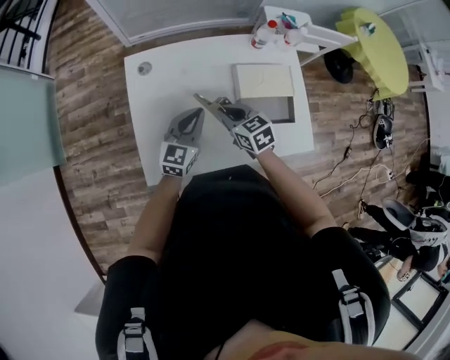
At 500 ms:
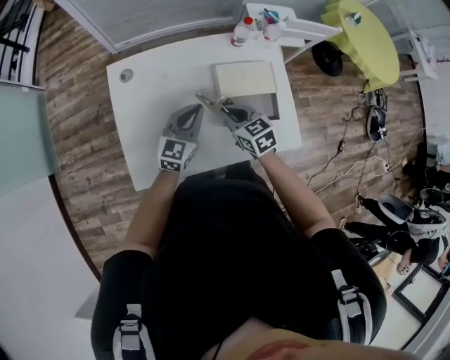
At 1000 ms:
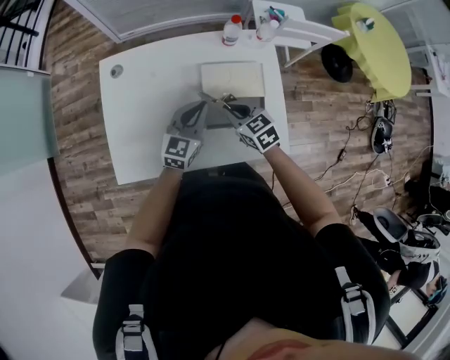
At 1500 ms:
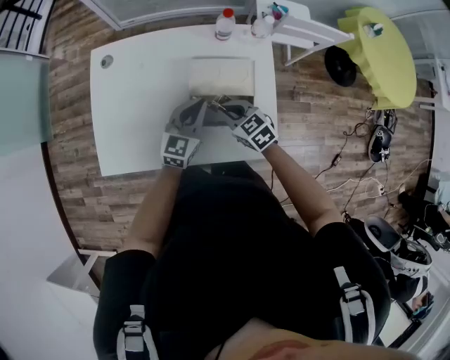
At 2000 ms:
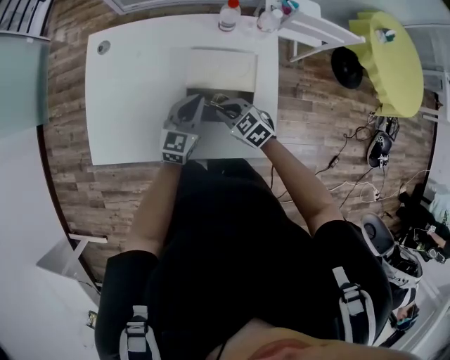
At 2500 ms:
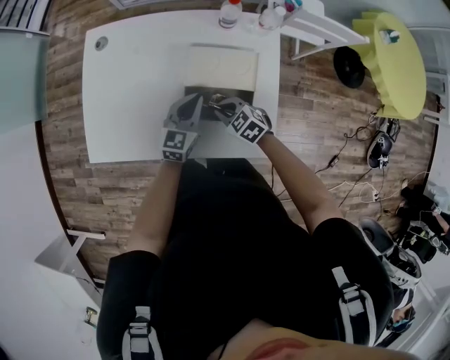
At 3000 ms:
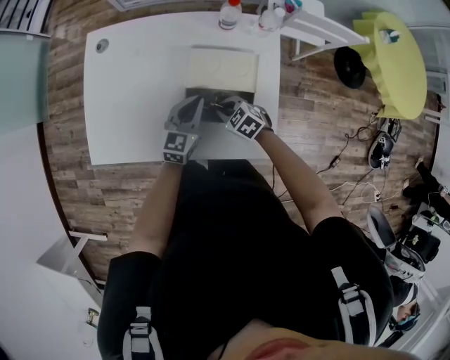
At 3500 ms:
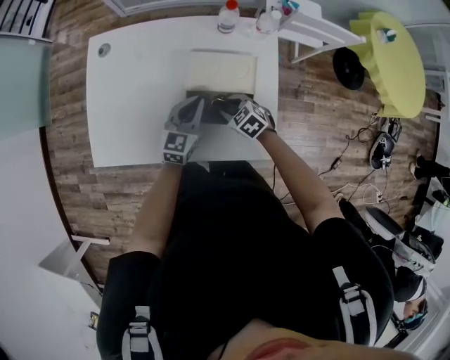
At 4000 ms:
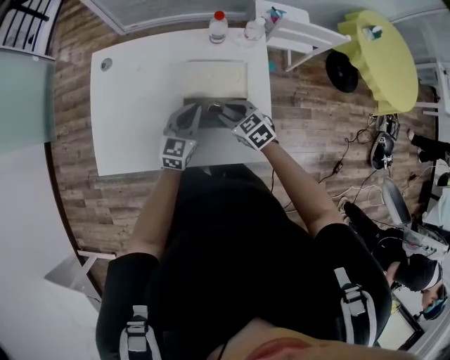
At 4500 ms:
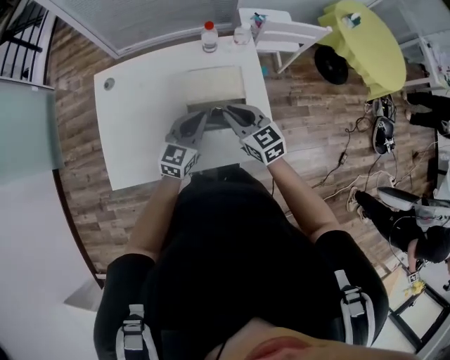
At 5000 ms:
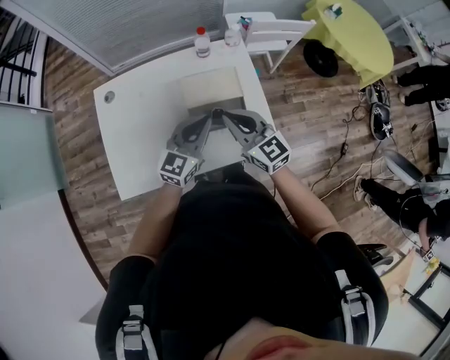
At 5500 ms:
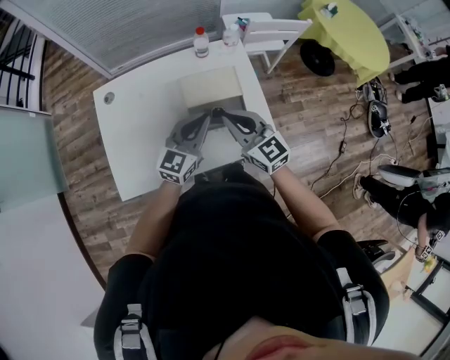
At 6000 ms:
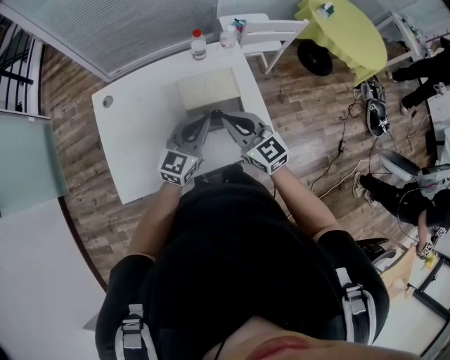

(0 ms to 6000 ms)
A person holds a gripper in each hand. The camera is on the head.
0 ms - 2000 ms: The right gripper moves to the right and downward, some 25 cm, and rotates some 30 degrees. The left gripper shifts approximately 25 cm to the right.
2000 ms - 4000 ms: The right gripper travels downward and back again, about 5 cm each way, and opens up.
4000 ms - 6000 ms: The right gripper goes some 20 cm upward, points its fingers roughly 30 degrees further upward, and closes its fingers, while the left gripper shifts roughly 15 cm upward and backward, and changes its angle by about 30 degrees.

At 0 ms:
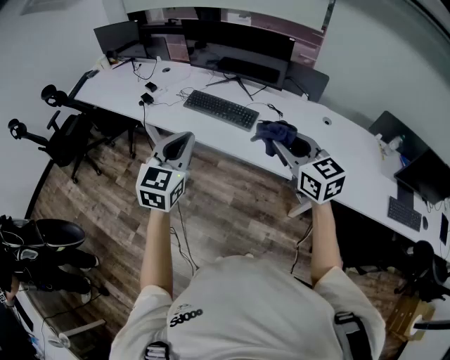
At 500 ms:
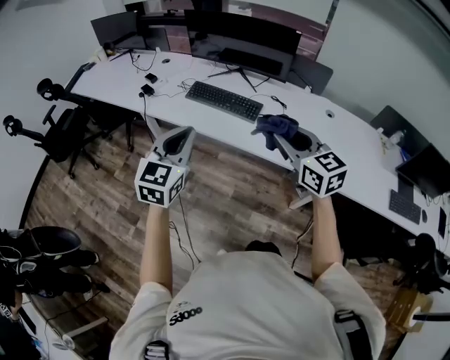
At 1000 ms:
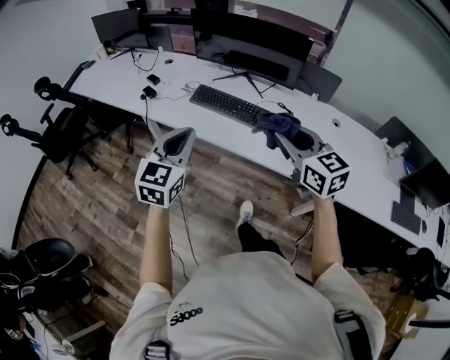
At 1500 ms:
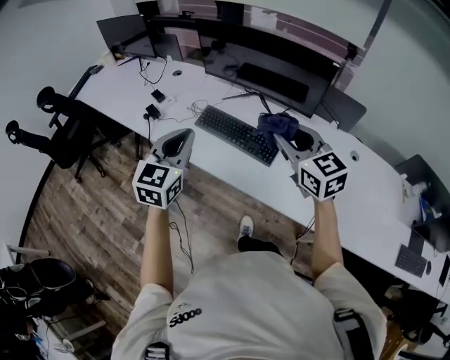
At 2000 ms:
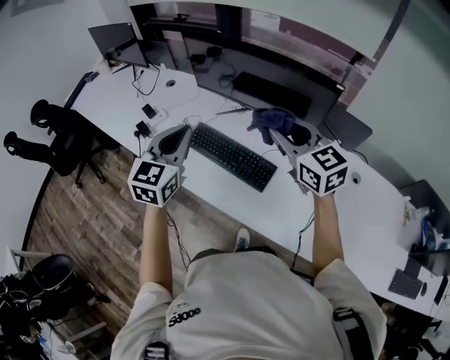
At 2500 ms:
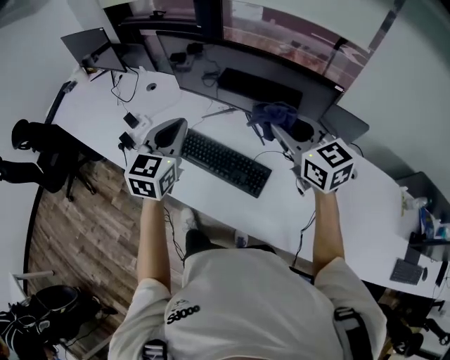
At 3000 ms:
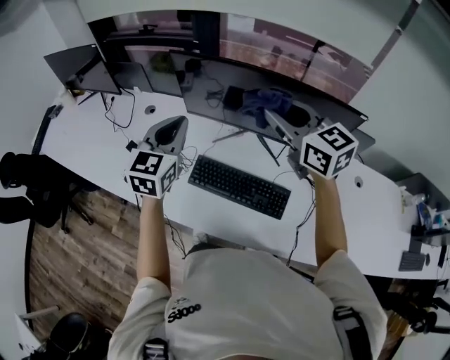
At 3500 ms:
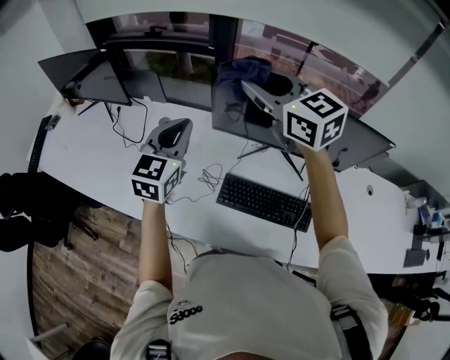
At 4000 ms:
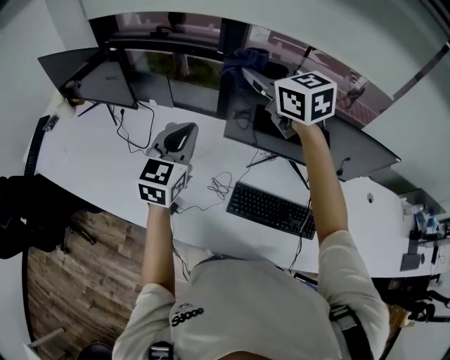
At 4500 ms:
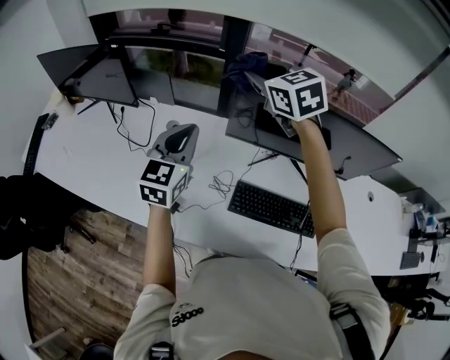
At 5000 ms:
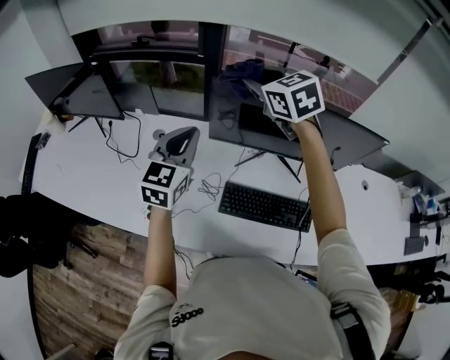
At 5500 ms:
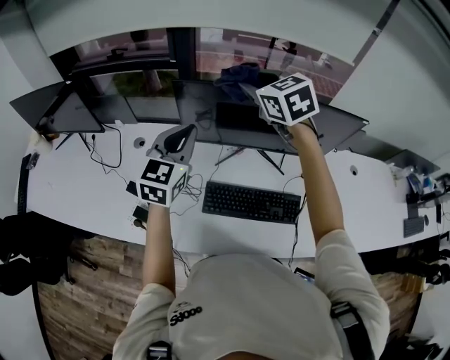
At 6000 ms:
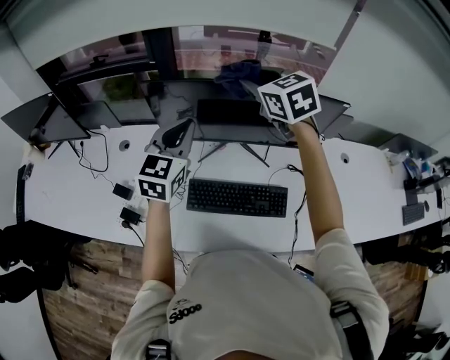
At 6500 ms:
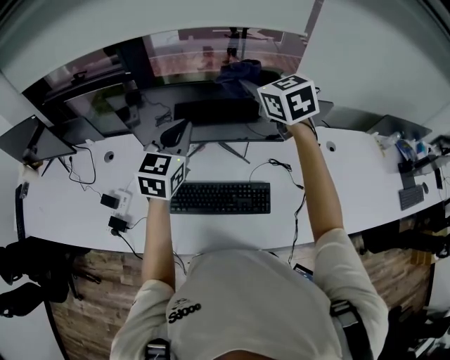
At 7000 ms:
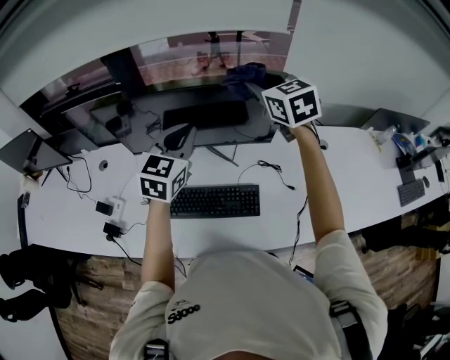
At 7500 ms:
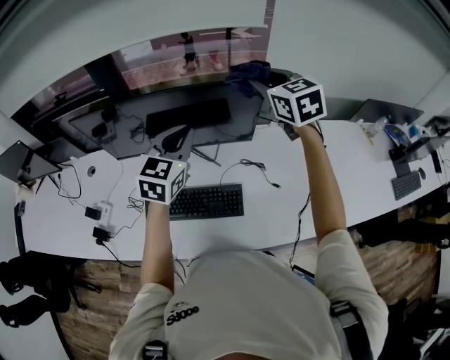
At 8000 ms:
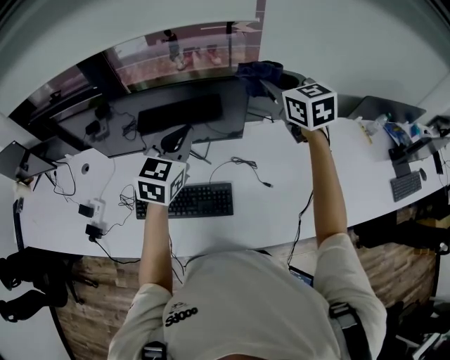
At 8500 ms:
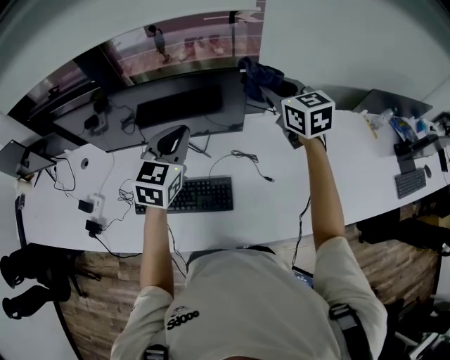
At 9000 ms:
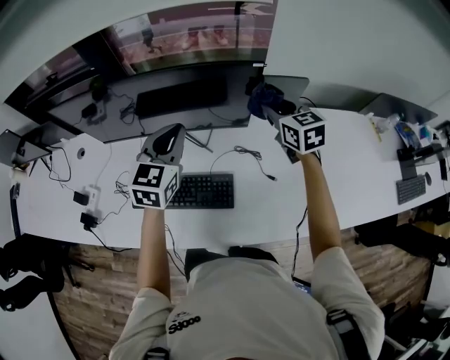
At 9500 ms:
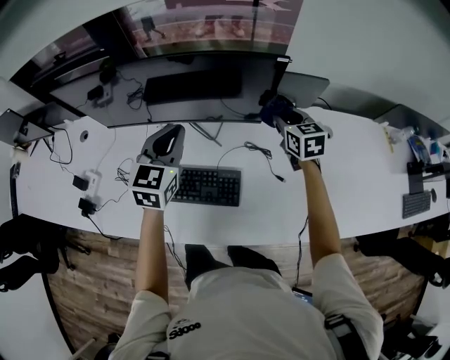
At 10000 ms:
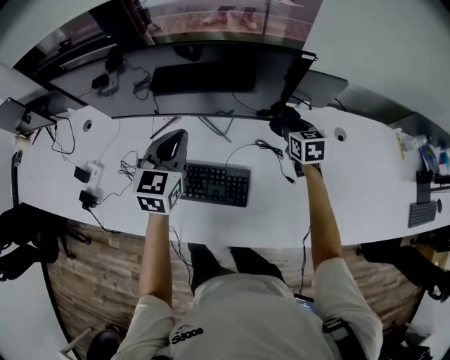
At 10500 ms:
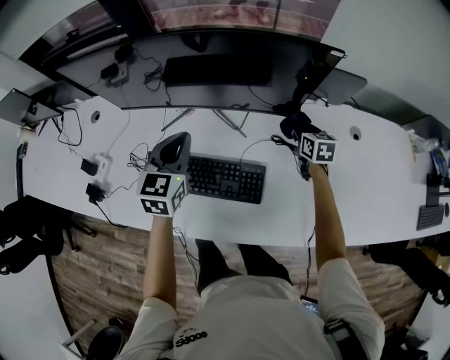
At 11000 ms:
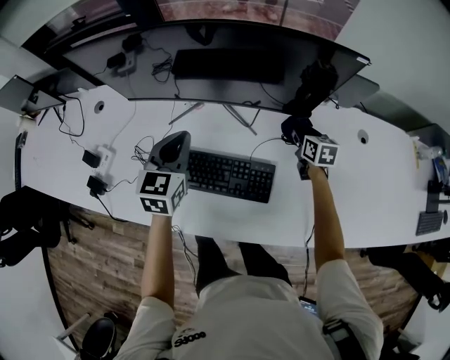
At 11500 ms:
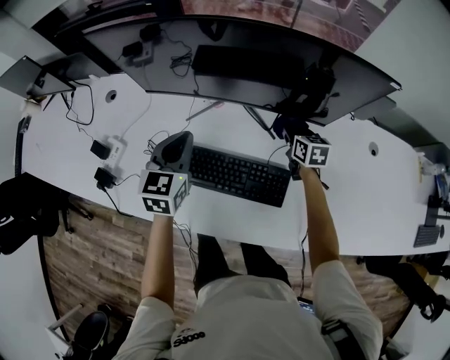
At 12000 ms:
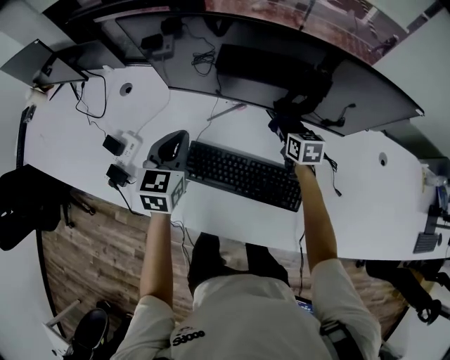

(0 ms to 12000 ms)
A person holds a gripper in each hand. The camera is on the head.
0 ms - 2000 ms: The grippers both shift forward by about 40 cm.
2000 ms - 4000 ms: Both grippers are carried forward and to the left, some 50 cm.
4000 ms - 6000 ms: Both grippers travel together to the right, approximately 25 cm. The right gripper rotates about 20 degrees.
6000 ms - 8000 ms: The two grippers go roughly 35 cm to the right.
8000 ms - 10000 ms: The right gripper moves downward, approximately 35 cm, and rotates some 20 degrees. Meanwhile the left gripper shifts some 15 cm downward and to the left.
10000 ms - 12000 ms: The two grippers go roughly 25 cm to the left.

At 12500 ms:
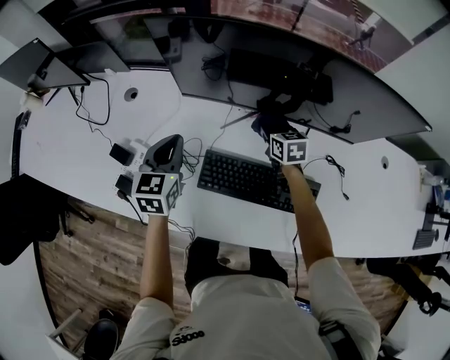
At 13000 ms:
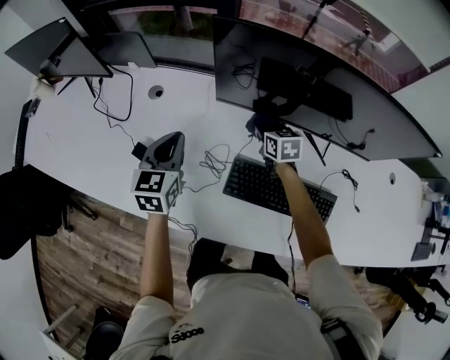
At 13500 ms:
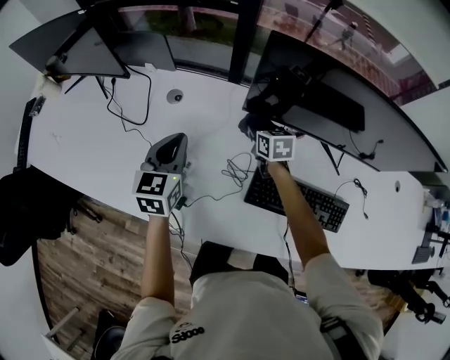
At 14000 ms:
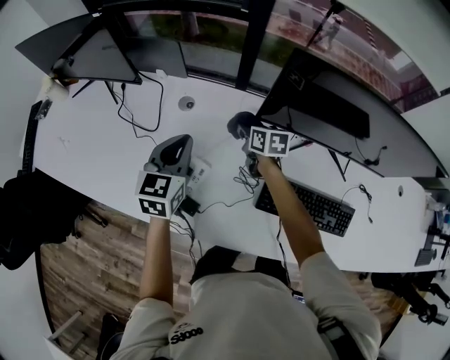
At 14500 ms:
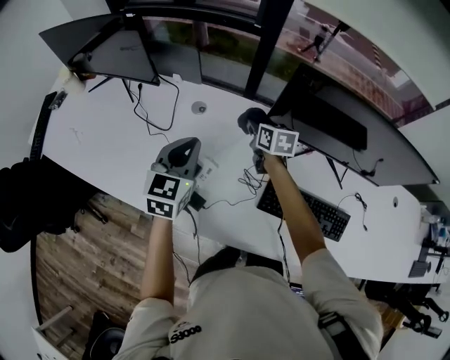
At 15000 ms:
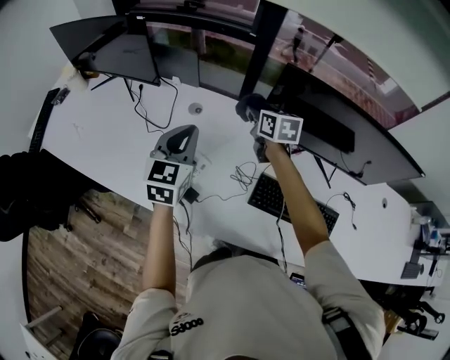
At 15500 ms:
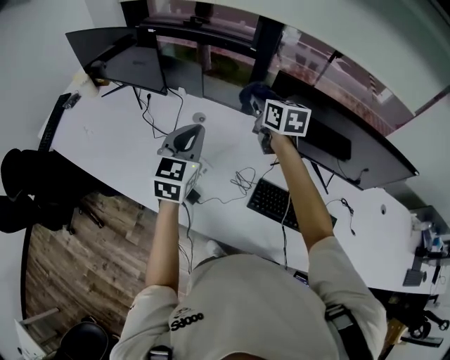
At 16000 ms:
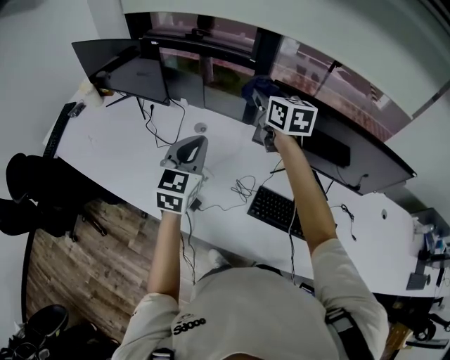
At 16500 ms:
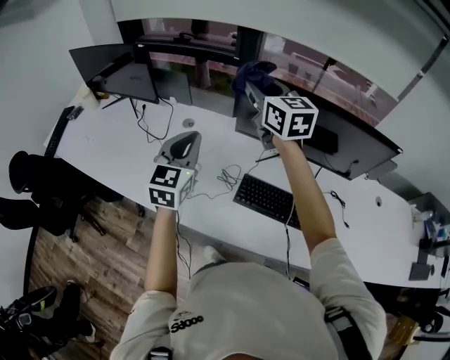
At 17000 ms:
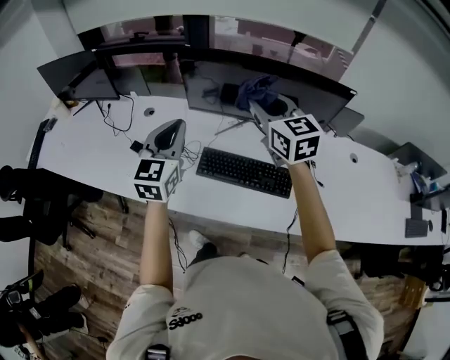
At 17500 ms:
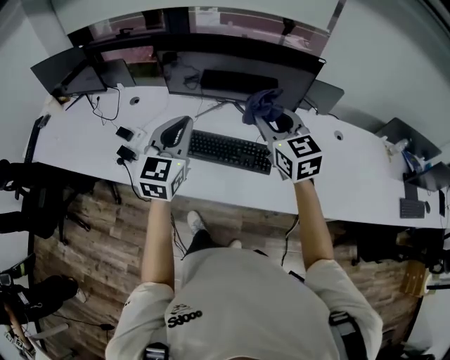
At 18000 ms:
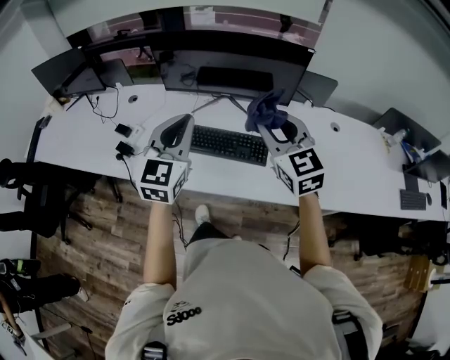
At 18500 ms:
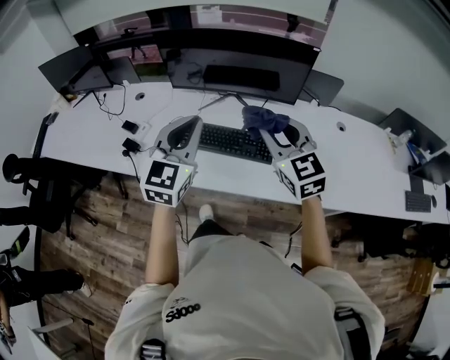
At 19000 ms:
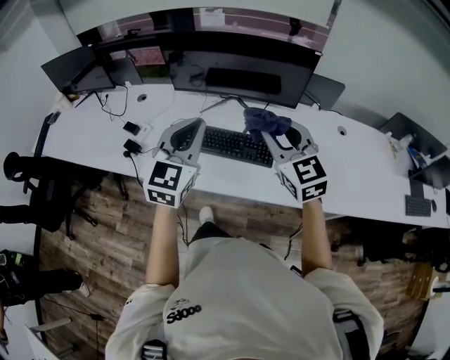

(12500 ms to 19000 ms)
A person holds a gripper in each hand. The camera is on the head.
12500 ms - 14500 ms: The grippers both shift to the left by about 25 cm.
14500 ms - 17000 ms: The left gripper travels backward, to the right and upward by some 35 cm. Meanwhile the right gripper is displaced backward, upward and to the right by about 50 cm, and turns by some 40 degrees.
17000 ms - 19000 ms: The grippers both shift backward and to the right by about 25 cm.

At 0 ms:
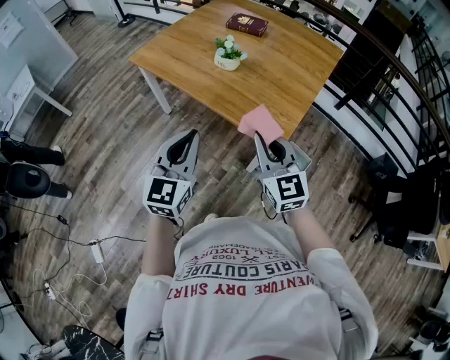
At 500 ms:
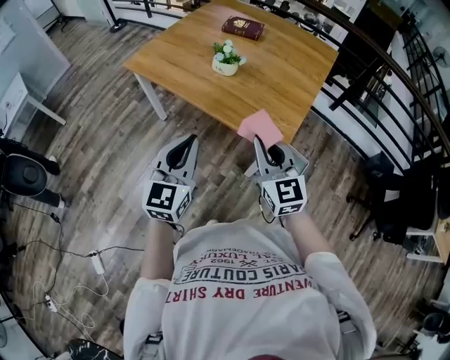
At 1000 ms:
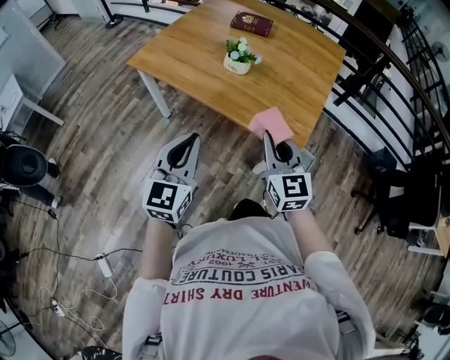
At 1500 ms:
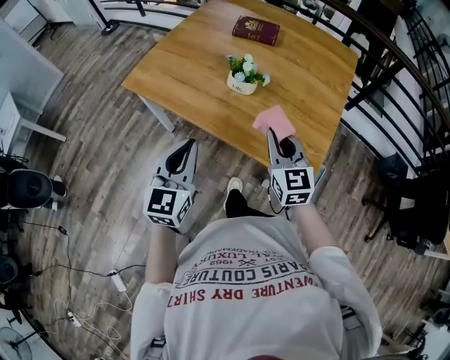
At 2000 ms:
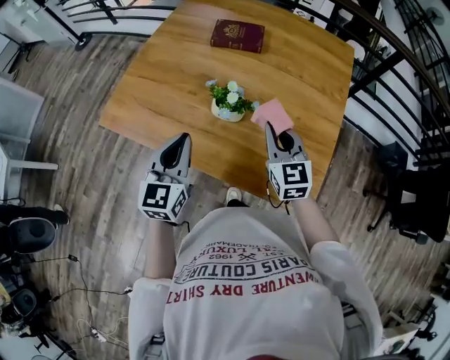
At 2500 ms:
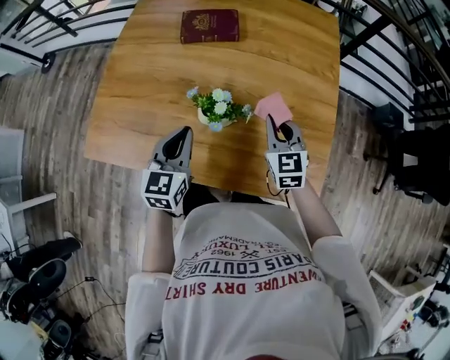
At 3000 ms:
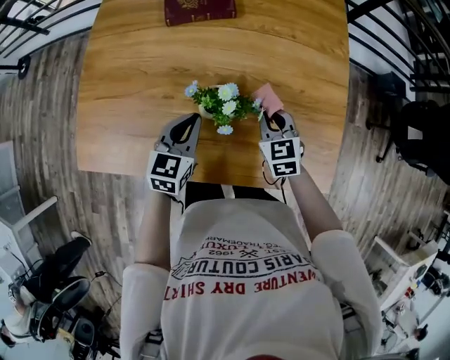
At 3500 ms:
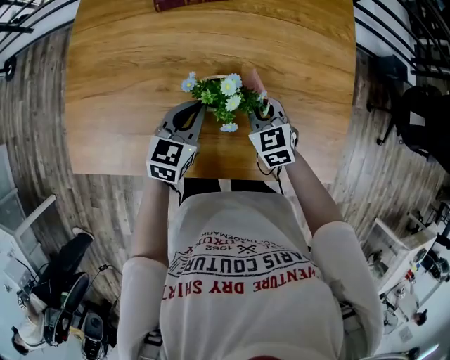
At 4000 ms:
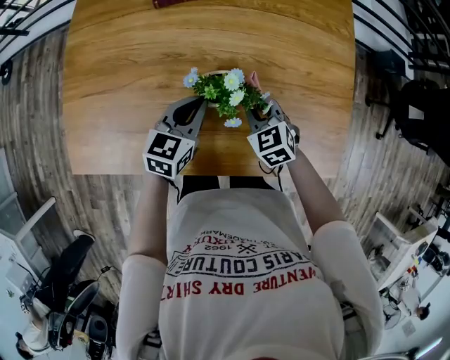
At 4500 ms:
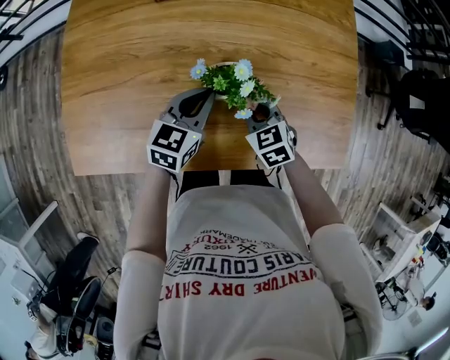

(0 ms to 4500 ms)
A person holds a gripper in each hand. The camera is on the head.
0 ms - 2000 ms: Both grippers travel together forward, about 35 cm. The right gripper swivels roughly 20 degrees.
2000 ms - 4500 ms: The right gripper shifts about 20 cm downward and to the left, and tips its fingers downward by approximately 30 degrees. The left gripper is displaced downward and forward by some 25 cm, and swivels some 50 degrees.
